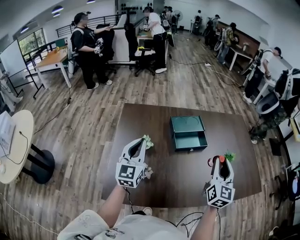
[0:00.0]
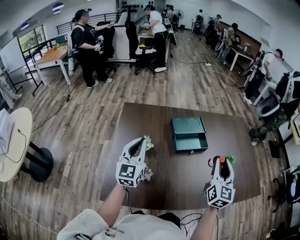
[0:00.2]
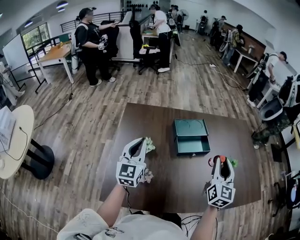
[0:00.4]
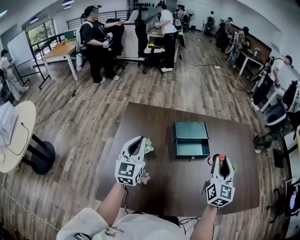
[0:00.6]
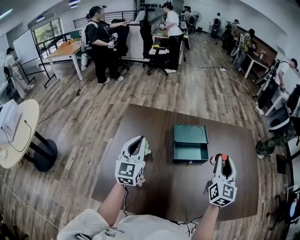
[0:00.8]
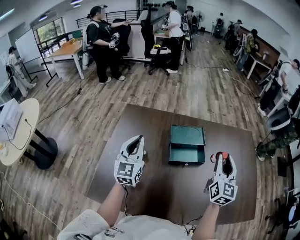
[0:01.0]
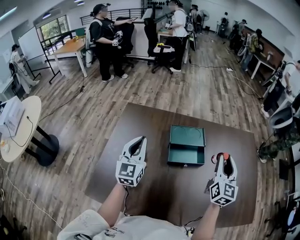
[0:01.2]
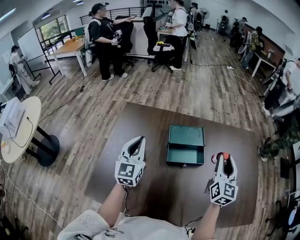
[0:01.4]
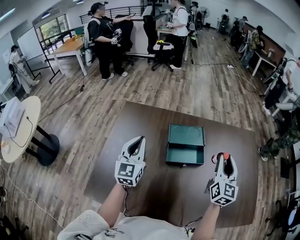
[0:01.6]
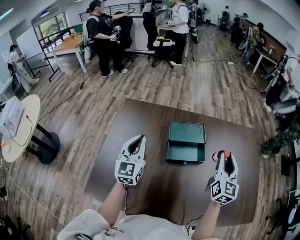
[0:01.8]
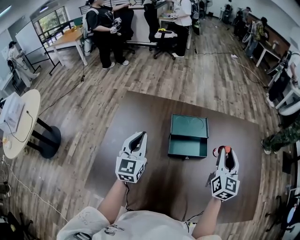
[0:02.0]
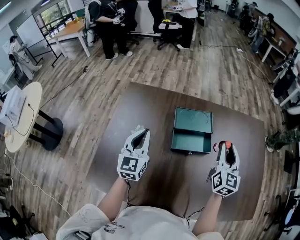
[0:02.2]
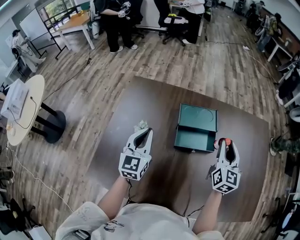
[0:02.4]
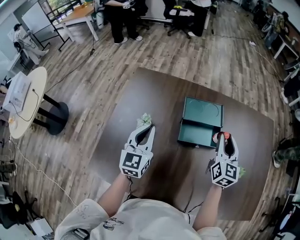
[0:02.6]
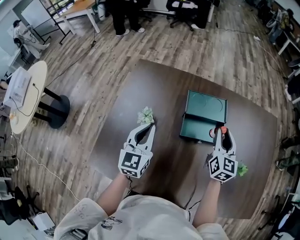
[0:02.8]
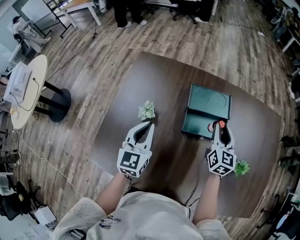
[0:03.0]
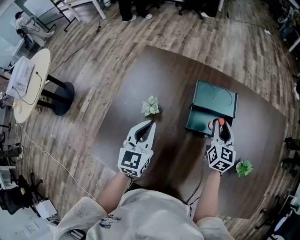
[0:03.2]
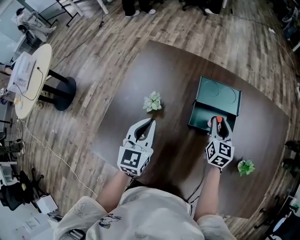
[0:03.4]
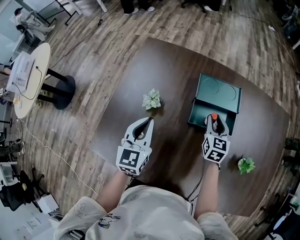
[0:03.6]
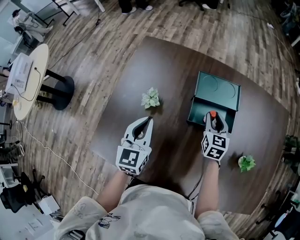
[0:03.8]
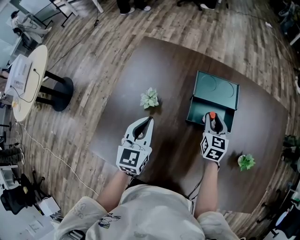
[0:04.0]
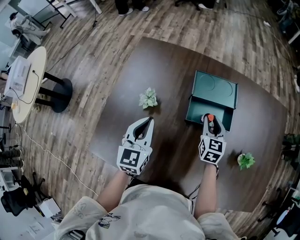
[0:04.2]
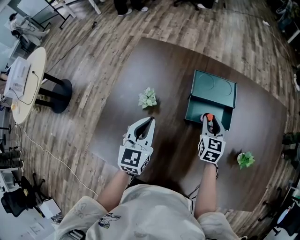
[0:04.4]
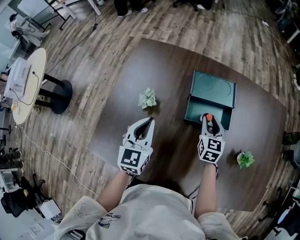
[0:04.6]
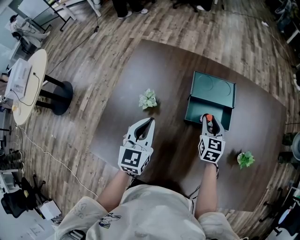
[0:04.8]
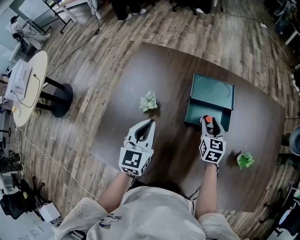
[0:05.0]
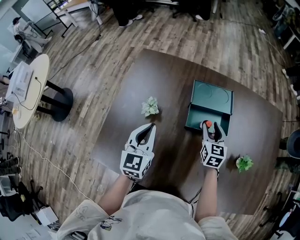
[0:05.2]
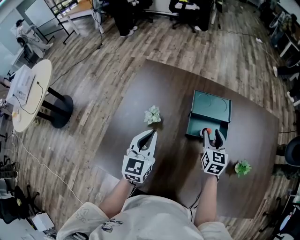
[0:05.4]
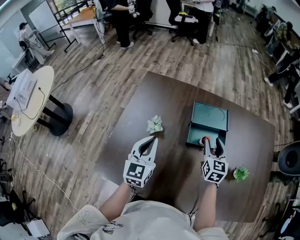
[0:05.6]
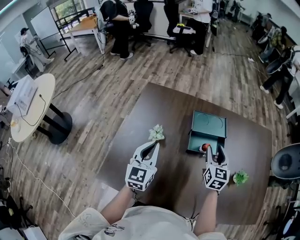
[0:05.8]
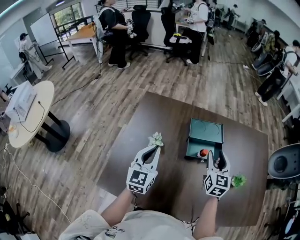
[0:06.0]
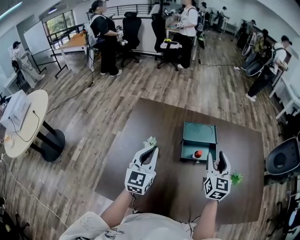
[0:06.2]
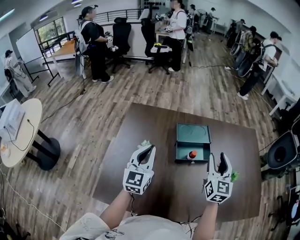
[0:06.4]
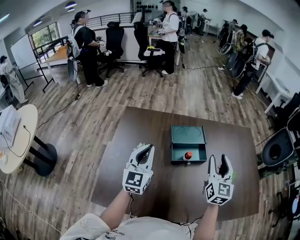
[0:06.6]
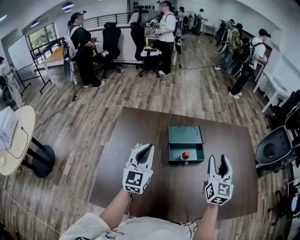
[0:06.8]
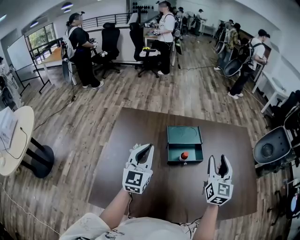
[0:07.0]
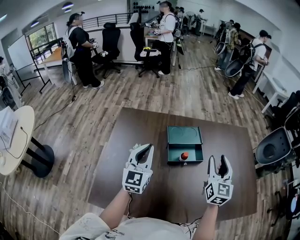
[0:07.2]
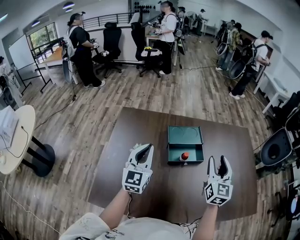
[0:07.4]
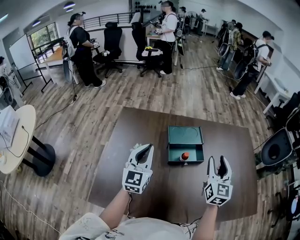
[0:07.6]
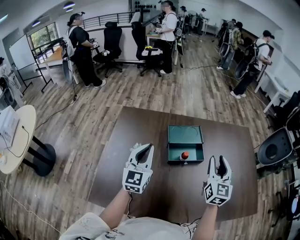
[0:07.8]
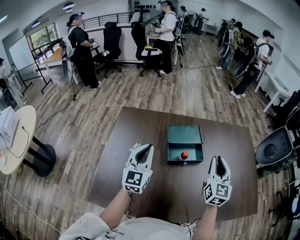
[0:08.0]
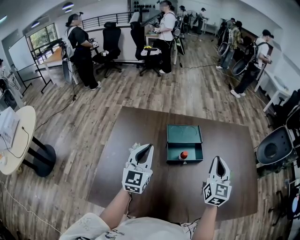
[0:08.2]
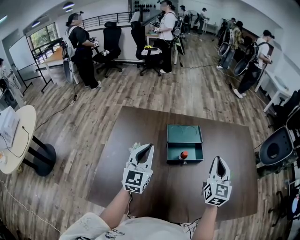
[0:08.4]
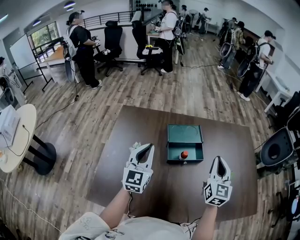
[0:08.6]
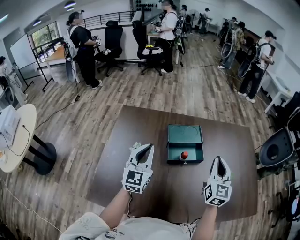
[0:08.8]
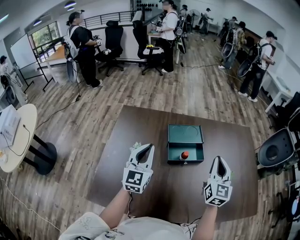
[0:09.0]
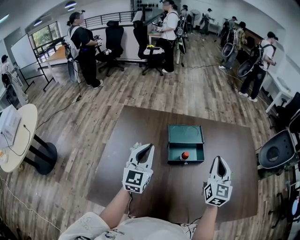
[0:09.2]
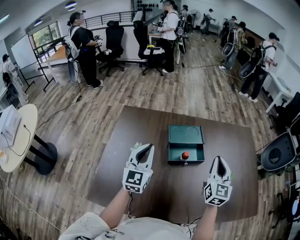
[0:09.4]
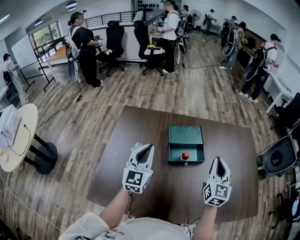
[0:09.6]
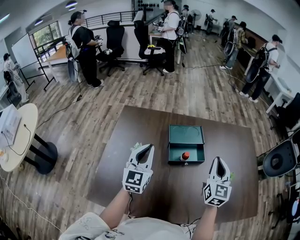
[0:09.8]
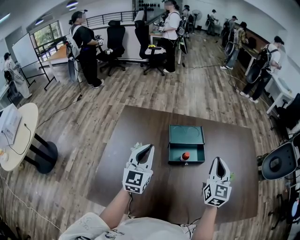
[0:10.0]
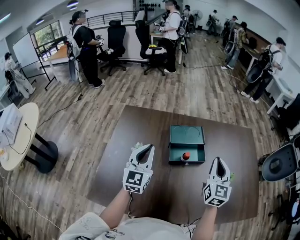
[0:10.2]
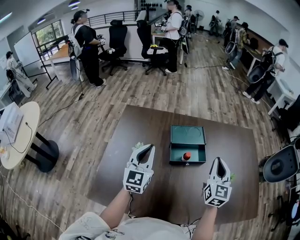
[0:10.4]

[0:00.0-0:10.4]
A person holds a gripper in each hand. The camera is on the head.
0:00.0 to 0:01.4: The left gripper travels forward and to the right by roughly 10 cm. The right gripper moves forward, some 20 cm.
0:01.4 to 0:03.0: The right gripper heads downward, forward and to the left, covering some 20 cm; the left gripper heads downward, covering about 10 cm.
0:03.0 to 0:04.4: The right gripper goes roughly 10 cm downward and to the left.
0:04.4 to 0:06.0: The right gripper shifts about 15 cm upward. Meanwhile the left gripper heads upward, covering some 5 cm.
0:06.0 to 0:07.4: The right gripper shifts approximately 10 cm to the right and upward. Meanwhile the left gripper is displaced upward by some 5 cm.
0:07.4 to 0:09.0: The right gripper closes.
0:09.0 to 0:10.4: The two grippers keep their place.

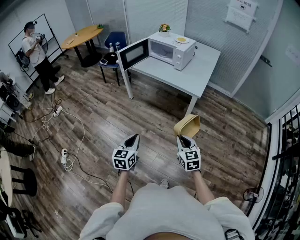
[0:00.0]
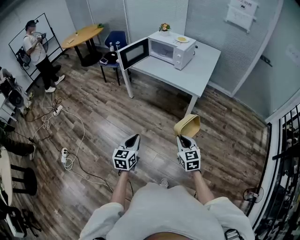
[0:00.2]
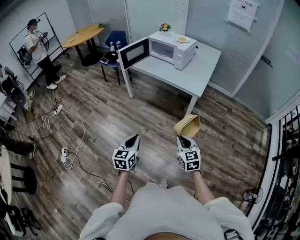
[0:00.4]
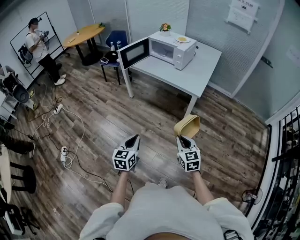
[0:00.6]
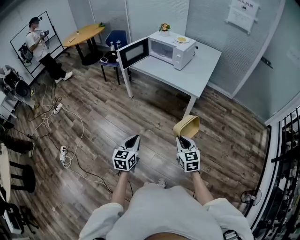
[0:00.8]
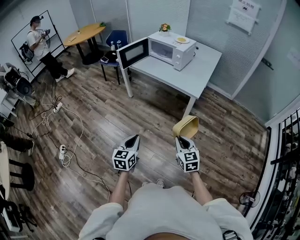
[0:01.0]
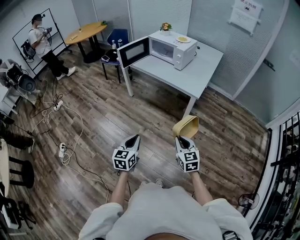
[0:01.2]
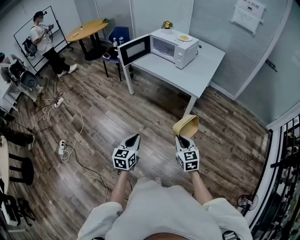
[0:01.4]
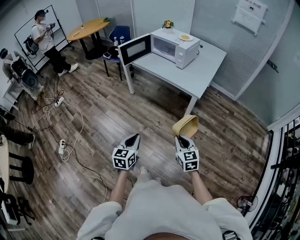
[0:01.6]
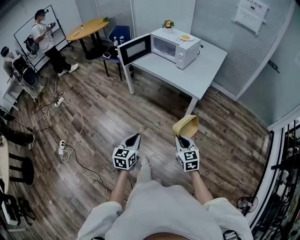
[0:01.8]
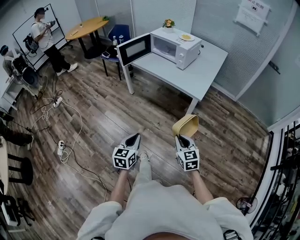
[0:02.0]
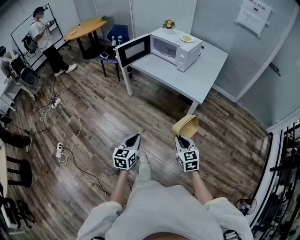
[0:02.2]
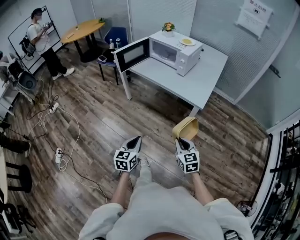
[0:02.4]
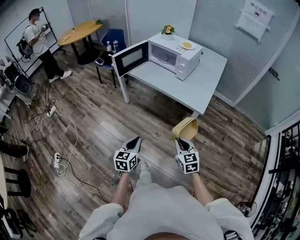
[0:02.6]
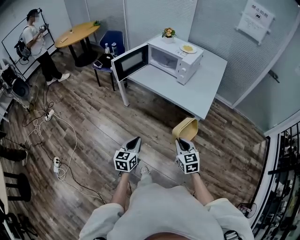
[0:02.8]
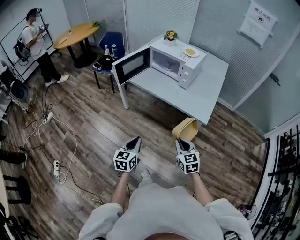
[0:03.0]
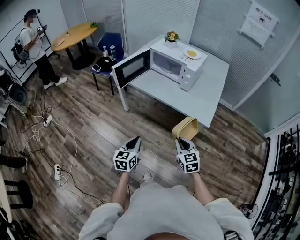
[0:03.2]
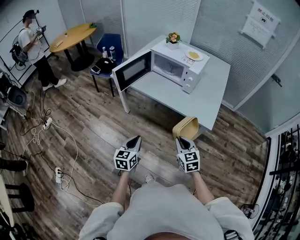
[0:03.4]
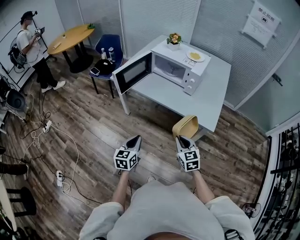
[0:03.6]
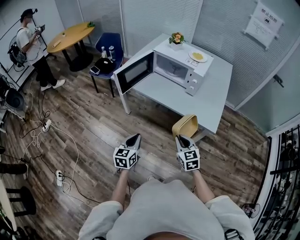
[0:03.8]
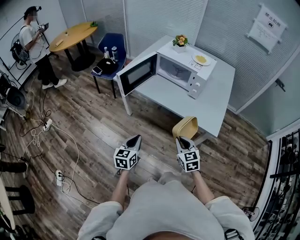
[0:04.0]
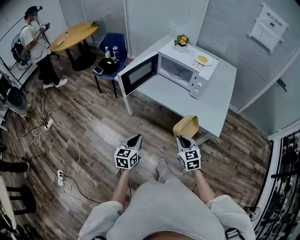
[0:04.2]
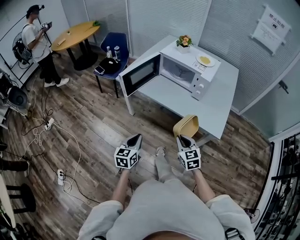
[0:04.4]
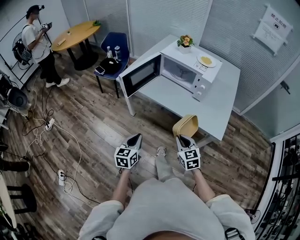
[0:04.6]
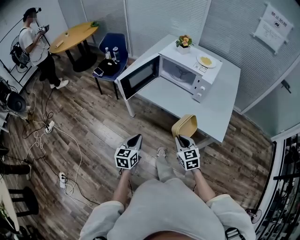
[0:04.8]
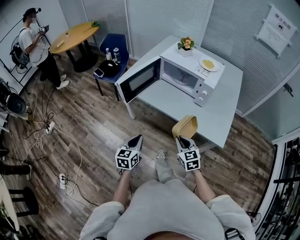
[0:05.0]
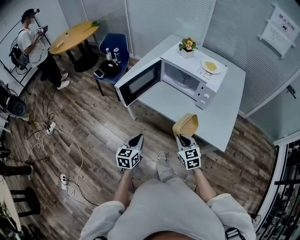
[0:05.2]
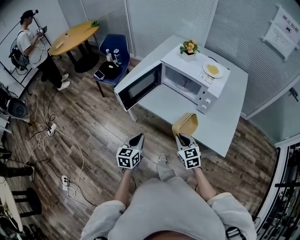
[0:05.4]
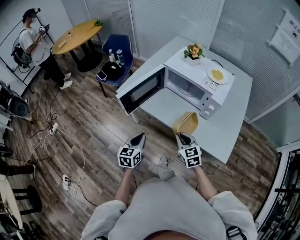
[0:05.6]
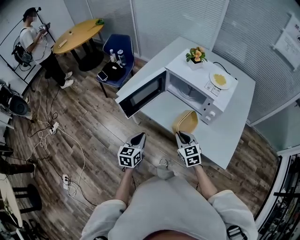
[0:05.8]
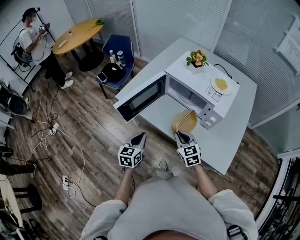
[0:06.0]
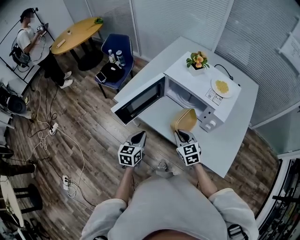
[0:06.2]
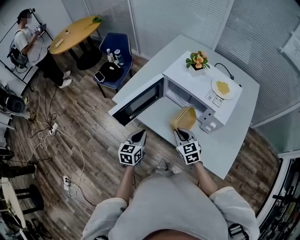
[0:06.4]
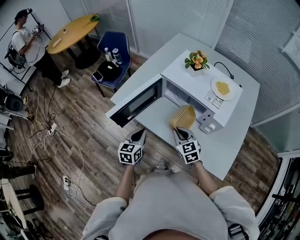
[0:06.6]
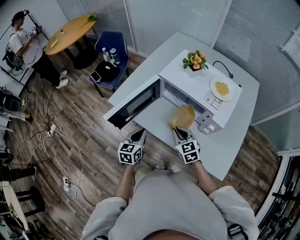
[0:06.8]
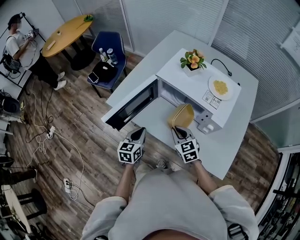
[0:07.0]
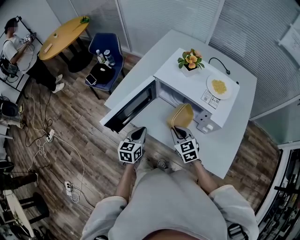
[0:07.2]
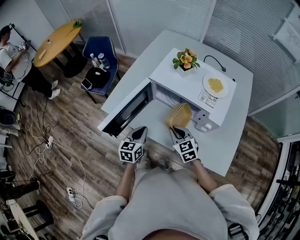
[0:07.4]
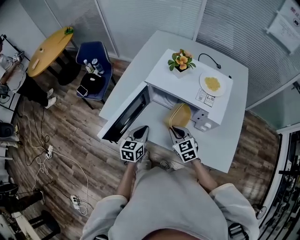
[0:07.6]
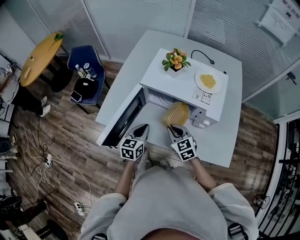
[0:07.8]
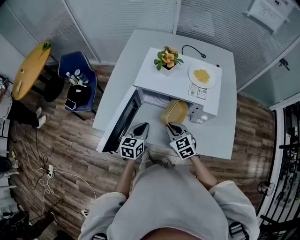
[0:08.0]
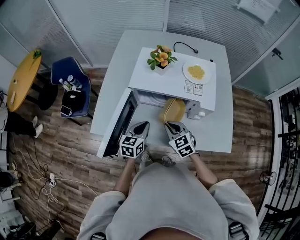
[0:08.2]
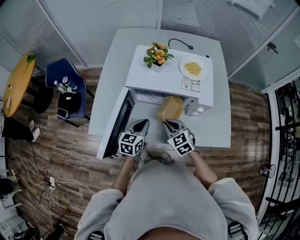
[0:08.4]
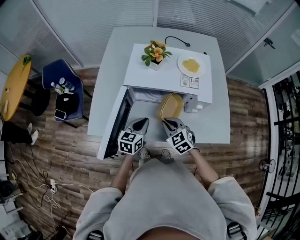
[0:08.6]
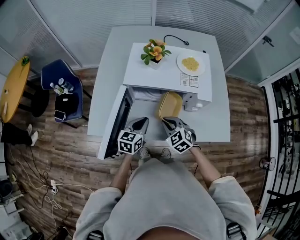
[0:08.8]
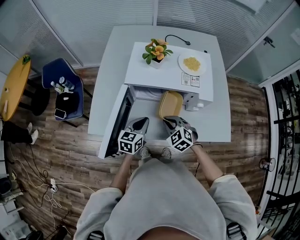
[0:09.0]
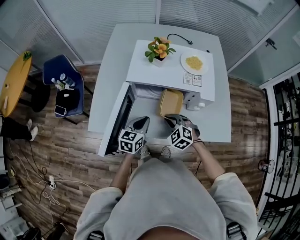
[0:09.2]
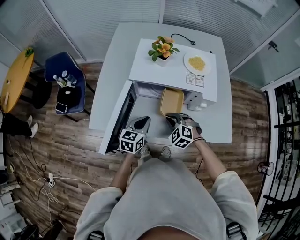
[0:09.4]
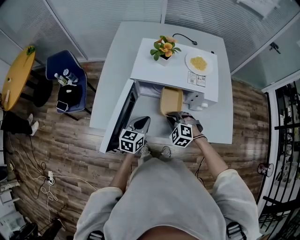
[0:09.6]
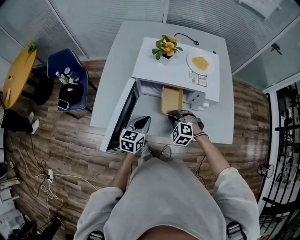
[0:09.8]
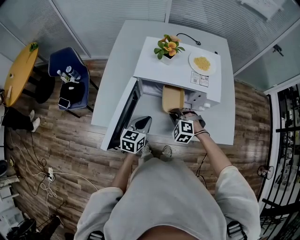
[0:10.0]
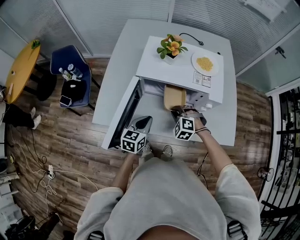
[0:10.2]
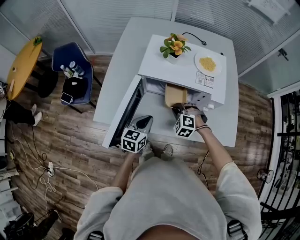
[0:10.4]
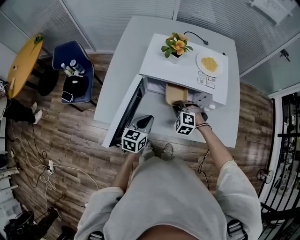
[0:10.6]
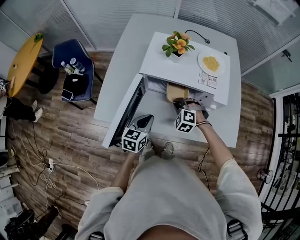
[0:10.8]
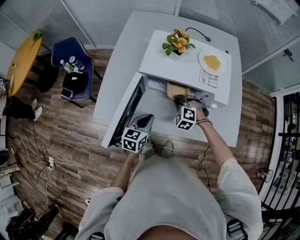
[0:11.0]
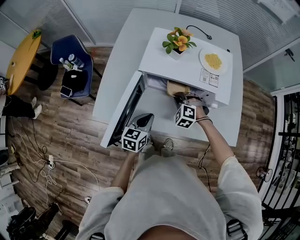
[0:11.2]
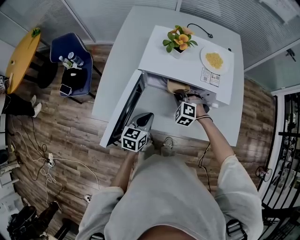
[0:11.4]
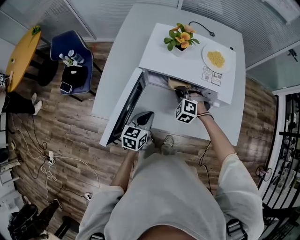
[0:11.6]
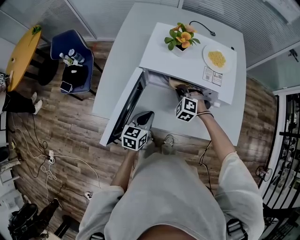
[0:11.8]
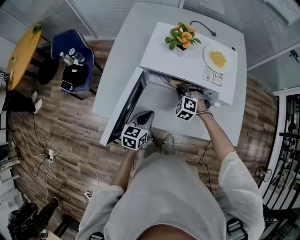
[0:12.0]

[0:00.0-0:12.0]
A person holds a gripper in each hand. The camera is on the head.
0:00.0 to 0:01.6: The right gripper ends up roughly 5 cm from where it was. Meanwhile the left gripper shifts some 5 cm to the right.
0:01.6 to 0:03.0: Both grippers move forward, approximately 25 cm.
0:03.0 to 0:04.4: Both grippers move forward and to the left, some 15 cm.
0:04.4 to 0:06.0: The two grippers go approximately 25 cm forward.
0:06.0 to 0:07.6: The left gripper goes about 15 cm forward and to the right; the right gripper goes some 10 cm forward.
0:07.6 to 0:09.0: The right gripper turns by some 20 degrees. The left gripper changes place by about 5 cm, and turns by about 30 degrees.
0:09.0 to 0:10.4: The right gripper moves some 5 cm, and rotates about 30 degrees.
0:10.4 to 0:12.0: The right gripper is displaced forward by some 10 cm.

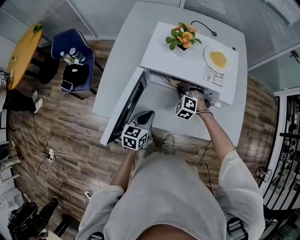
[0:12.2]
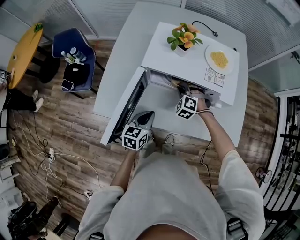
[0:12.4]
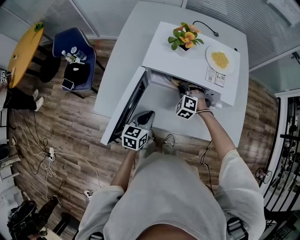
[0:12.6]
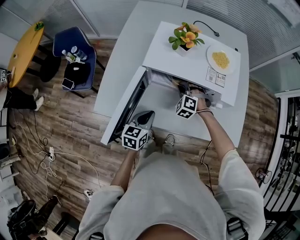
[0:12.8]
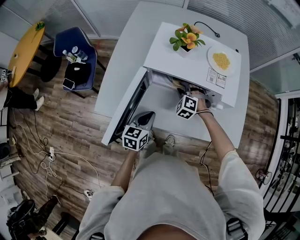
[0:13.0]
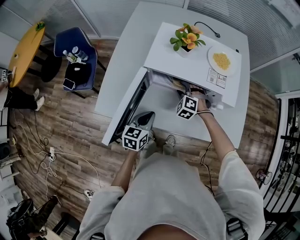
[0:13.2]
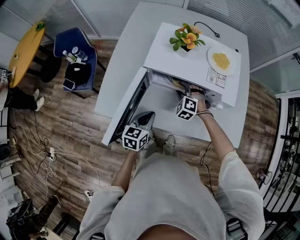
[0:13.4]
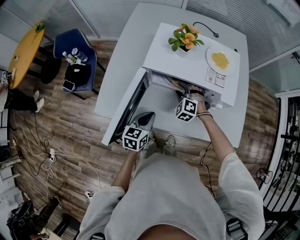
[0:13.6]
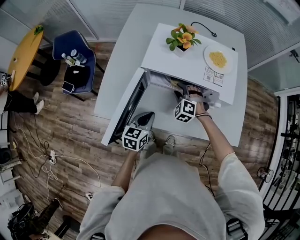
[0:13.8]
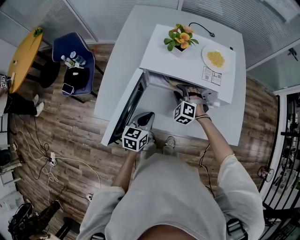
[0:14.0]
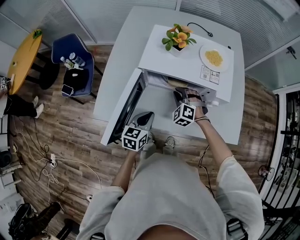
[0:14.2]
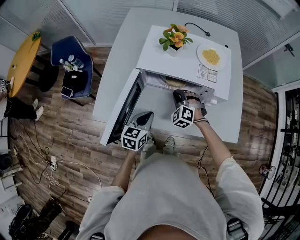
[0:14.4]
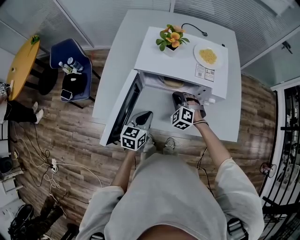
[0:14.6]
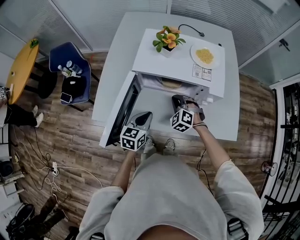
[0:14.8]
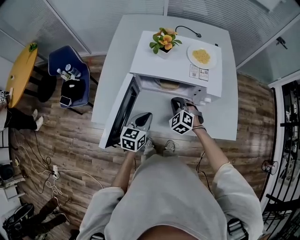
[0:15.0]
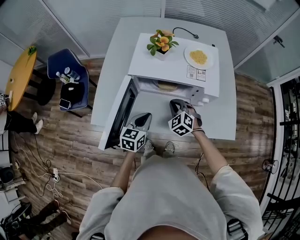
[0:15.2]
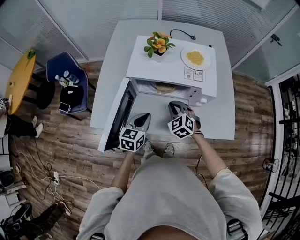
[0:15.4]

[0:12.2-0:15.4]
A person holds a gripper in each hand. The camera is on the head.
0:12.2 to 0:13.8: The right gripper opens up.
0:13.8 to 0:15.4: The right gripper goes approximately 10 cm backward and upward, turns by roughly 30 degrees, and closes.
